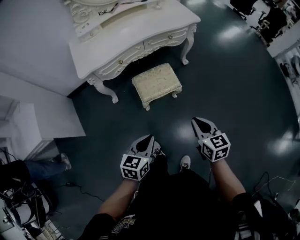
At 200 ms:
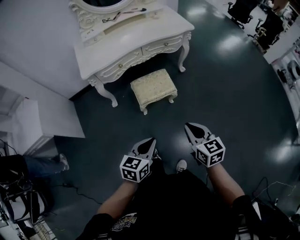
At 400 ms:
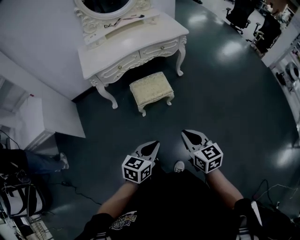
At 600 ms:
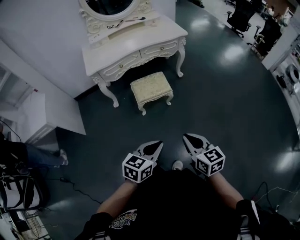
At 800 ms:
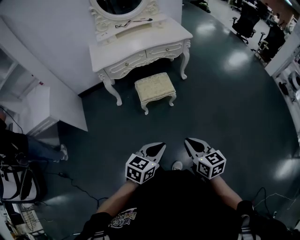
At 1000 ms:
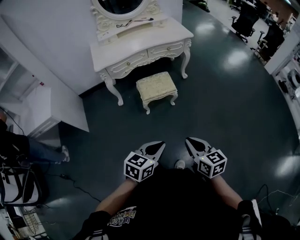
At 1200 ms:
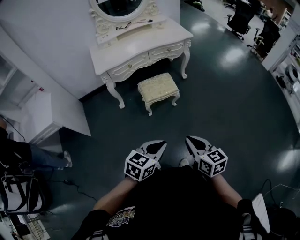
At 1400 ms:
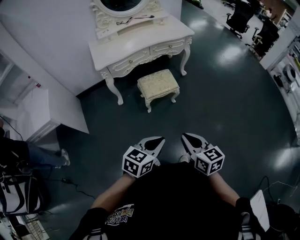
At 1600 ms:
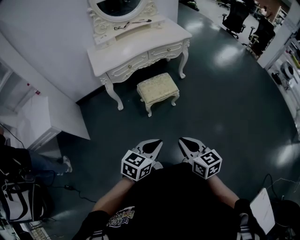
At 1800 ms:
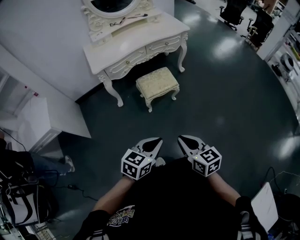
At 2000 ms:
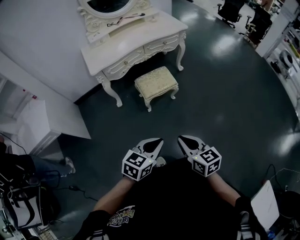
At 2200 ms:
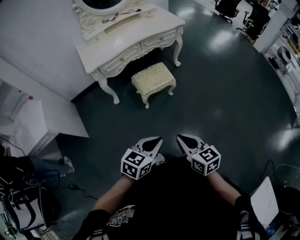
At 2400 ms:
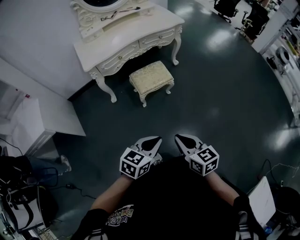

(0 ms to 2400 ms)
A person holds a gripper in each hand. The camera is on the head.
0 ms - 1200 ms: The right gripper travels backward by approximately 25 cm, while the left gripper travels backward, upward and to the right by approximately 25 cm.
1200 ms - 2400 ms: Both grippers travel together to the left, roughly 10 cm.

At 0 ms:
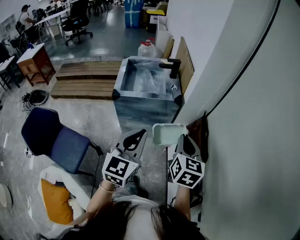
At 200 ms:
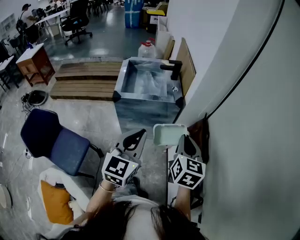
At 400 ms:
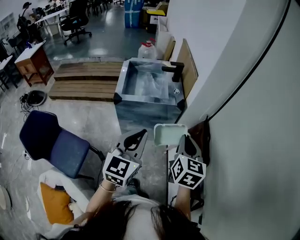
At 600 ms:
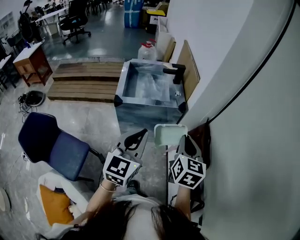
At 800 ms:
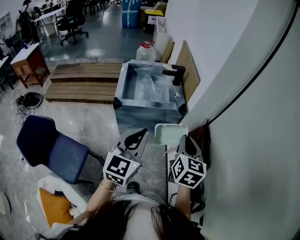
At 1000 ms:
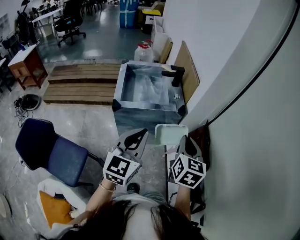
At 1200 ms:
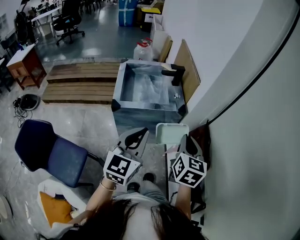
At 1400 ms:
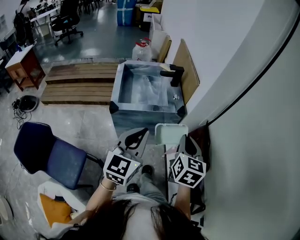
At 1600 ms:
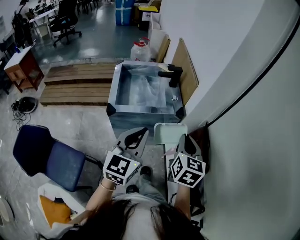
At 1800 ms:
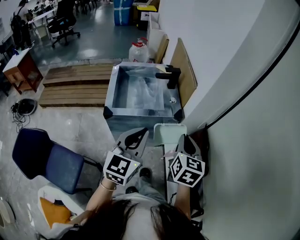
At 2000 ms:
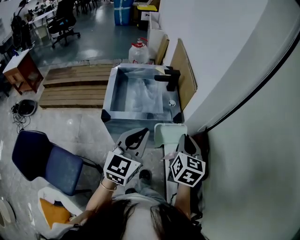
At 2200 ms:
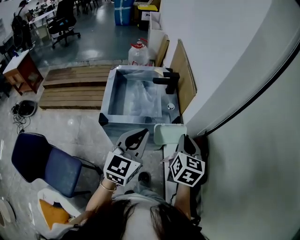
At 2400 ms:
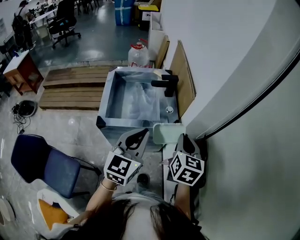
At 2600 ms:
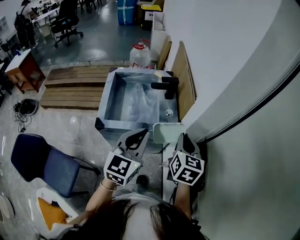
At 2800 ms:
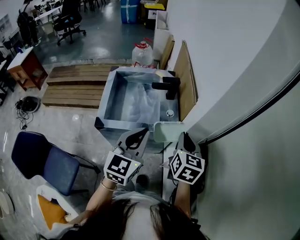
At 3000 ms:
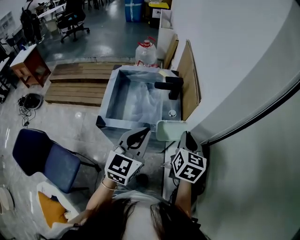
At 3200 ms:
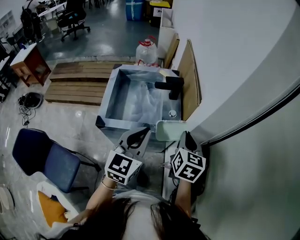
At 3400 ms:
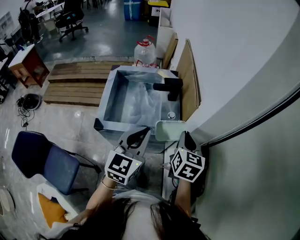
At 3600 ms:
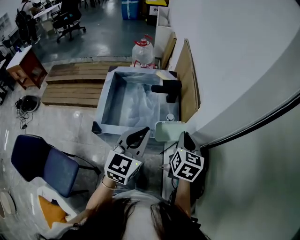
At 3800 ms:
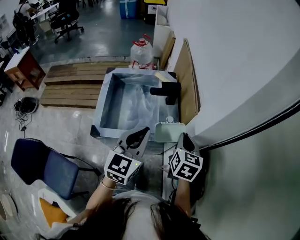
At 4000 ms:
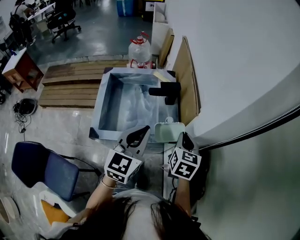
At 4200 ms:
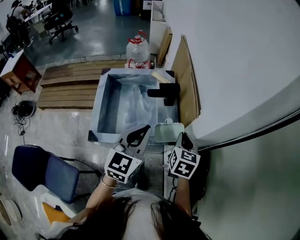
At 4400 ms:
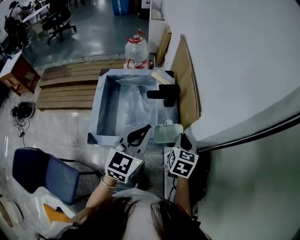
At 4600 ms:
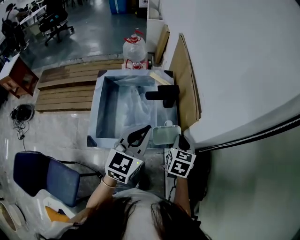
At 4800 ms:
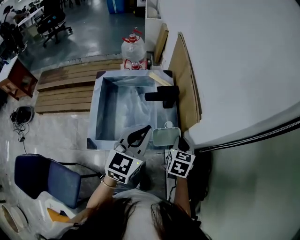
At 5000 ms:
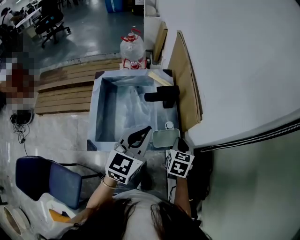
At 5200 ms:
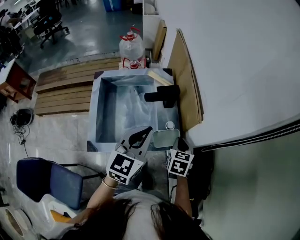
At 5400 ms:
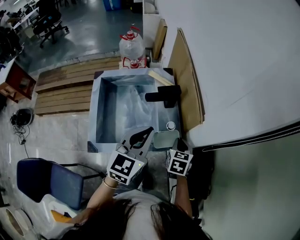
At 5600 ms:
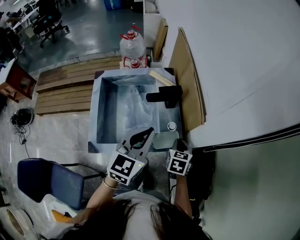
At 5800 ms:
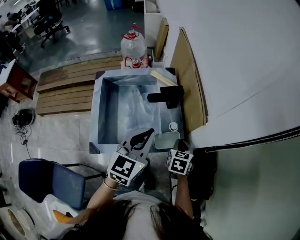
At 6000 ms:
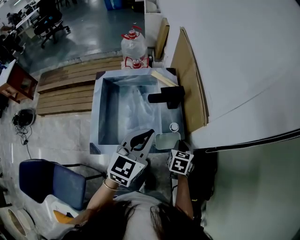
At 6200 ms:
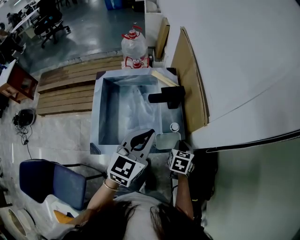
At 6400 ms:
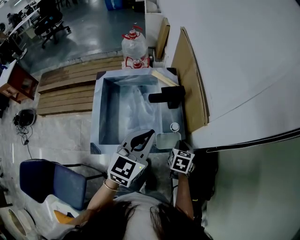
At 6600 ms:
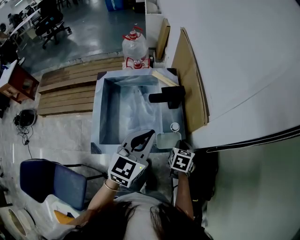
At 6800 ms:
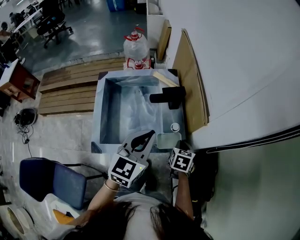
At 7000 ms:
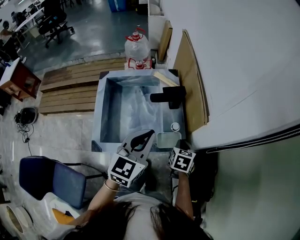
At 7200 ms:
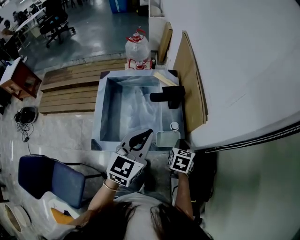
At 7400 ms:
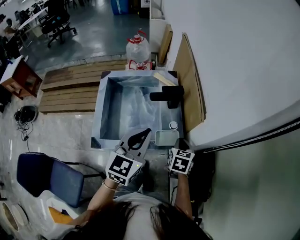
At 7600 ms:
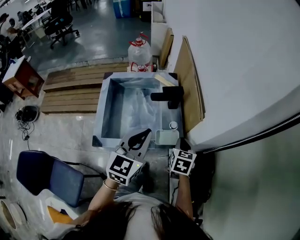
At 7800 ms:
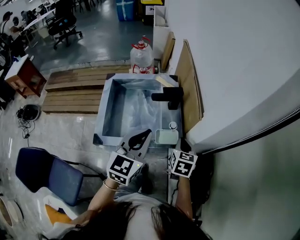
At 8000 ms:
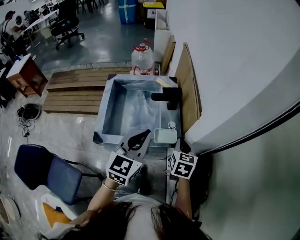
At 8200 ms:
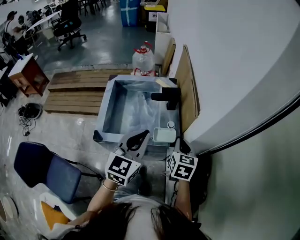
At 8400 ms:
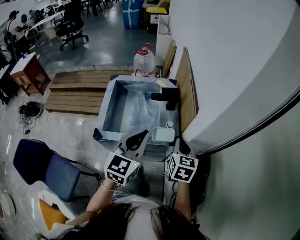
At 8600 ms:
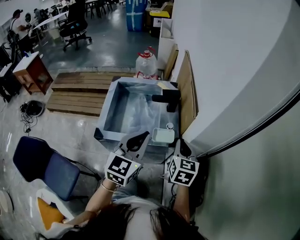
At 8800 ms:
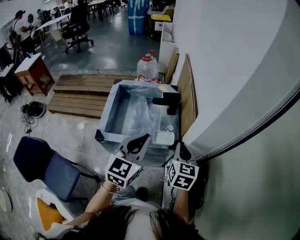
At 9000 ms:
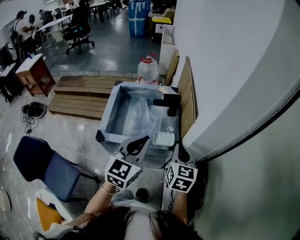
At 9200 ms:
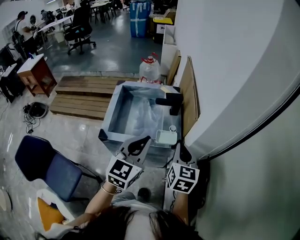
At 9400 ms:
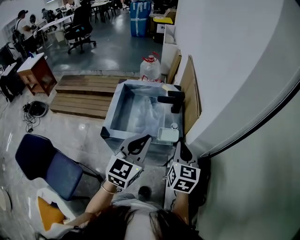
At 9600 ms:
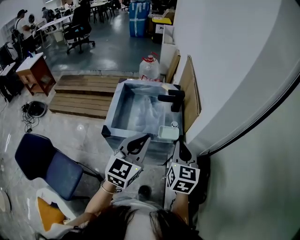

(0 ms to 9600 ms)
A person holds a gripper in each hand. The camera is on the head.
0 ms - 1600 ms: The two grippers go about 15 cm forward and to the left.
1600 ms - 3200 ms: The grippers both shift forward by some 20 cm.
3200 ms - 4800 ms: The left gripper goes about 15 cm forward, while the right gripper shifts roughly 15 cm downward and forward.
4800 ms - 6400 ms: The right gripper moves downward, about 10 cm.
6400 ms - 8000 ms: The right gripper heads upward, covering approximately 10 cm, while the left gripper heads backward, covering roughly 10 cm.
8000 ms - 9600 ms: The right gripper heads upward and backward, covering approximately 15 cm. The left gripper travels backward by roughly 10 cm.

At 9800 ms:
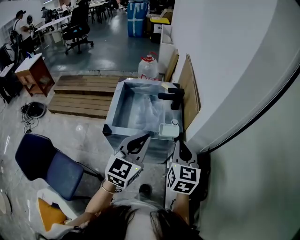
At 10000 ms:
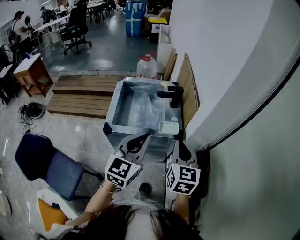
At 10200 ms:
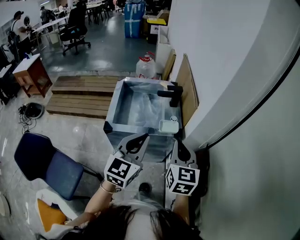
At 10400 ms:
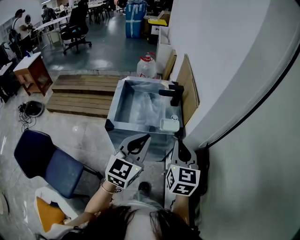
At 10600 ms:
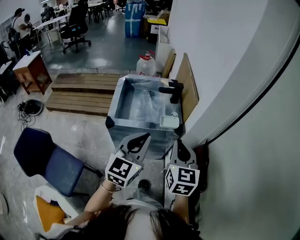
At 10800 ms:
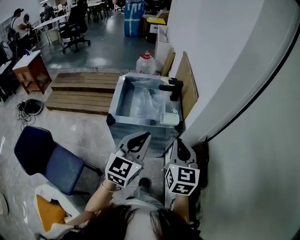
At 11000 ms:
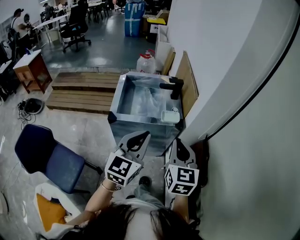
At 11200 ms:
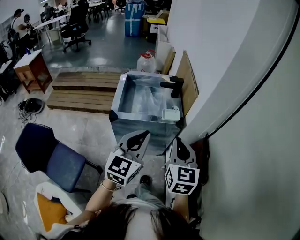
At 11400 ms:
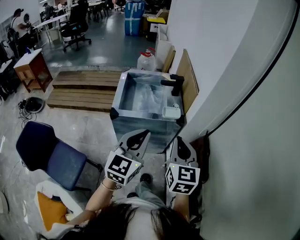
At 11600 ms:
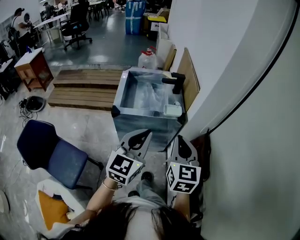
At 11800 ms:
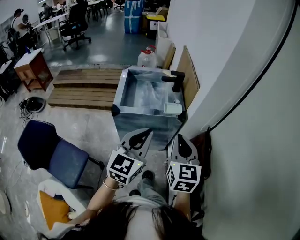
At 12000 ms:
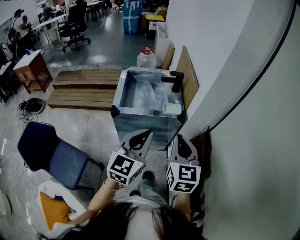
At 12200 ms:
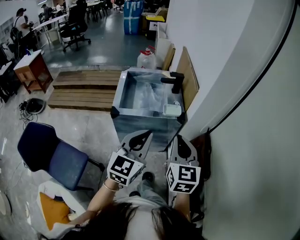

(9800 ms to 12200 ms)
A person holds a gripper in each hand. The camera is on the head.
9800 ms - 11000 ms: Both grippers travel together backward, approximately 10 cm.
11000 ms - 12200 ms: There are only small adjustments of the grippers.

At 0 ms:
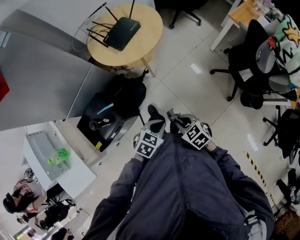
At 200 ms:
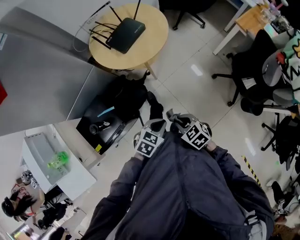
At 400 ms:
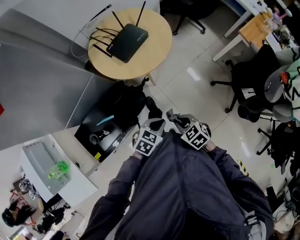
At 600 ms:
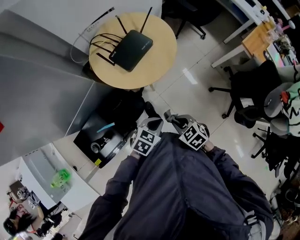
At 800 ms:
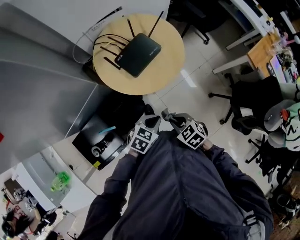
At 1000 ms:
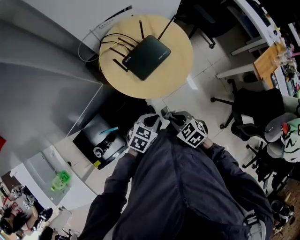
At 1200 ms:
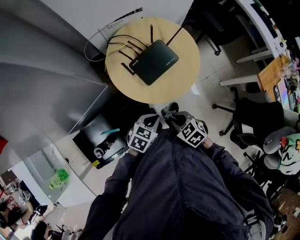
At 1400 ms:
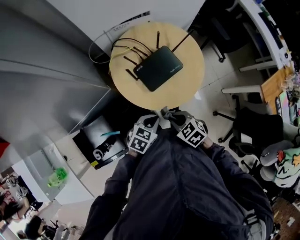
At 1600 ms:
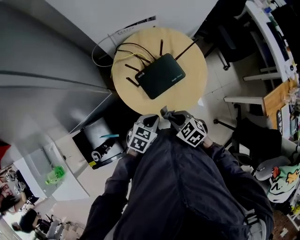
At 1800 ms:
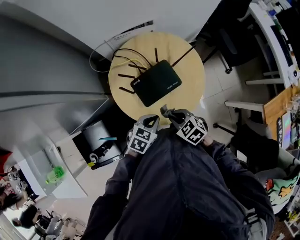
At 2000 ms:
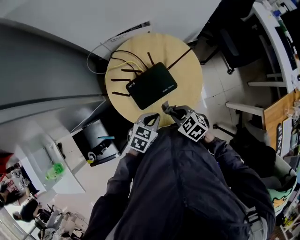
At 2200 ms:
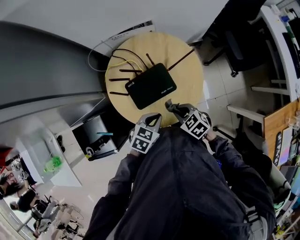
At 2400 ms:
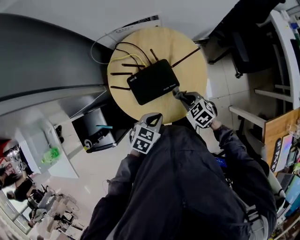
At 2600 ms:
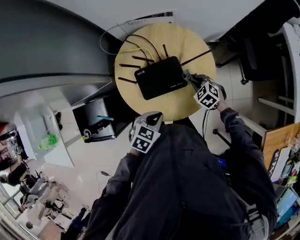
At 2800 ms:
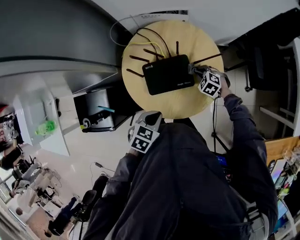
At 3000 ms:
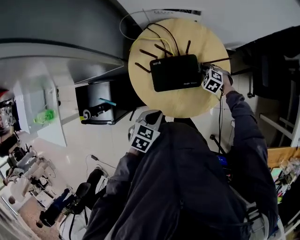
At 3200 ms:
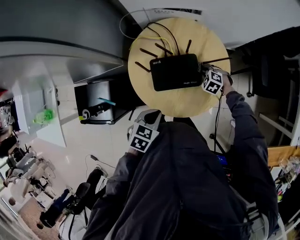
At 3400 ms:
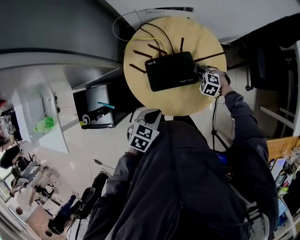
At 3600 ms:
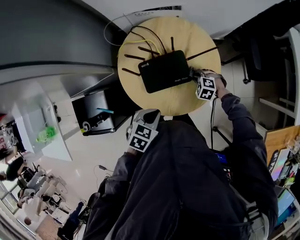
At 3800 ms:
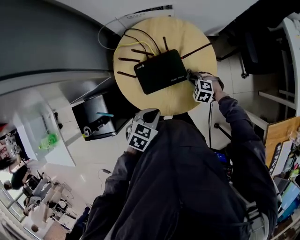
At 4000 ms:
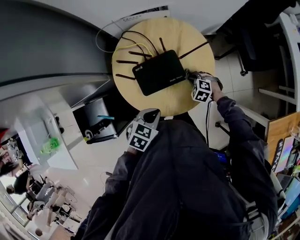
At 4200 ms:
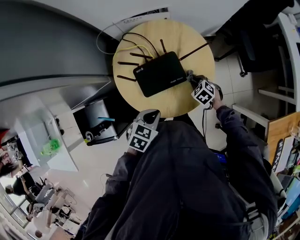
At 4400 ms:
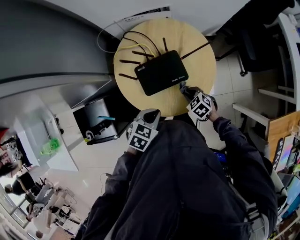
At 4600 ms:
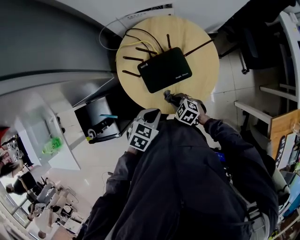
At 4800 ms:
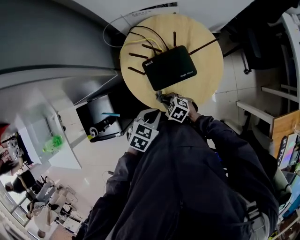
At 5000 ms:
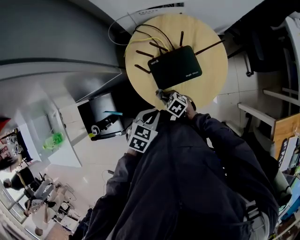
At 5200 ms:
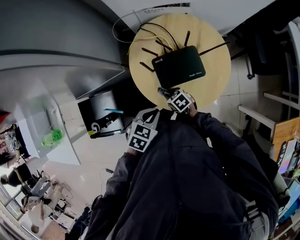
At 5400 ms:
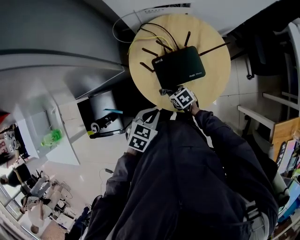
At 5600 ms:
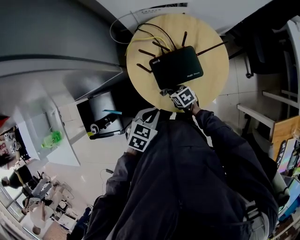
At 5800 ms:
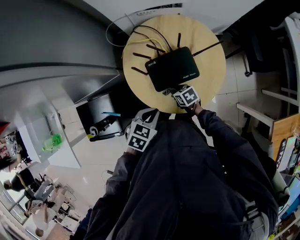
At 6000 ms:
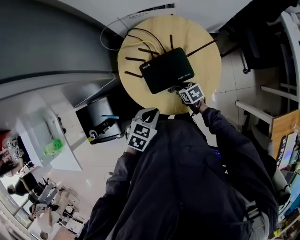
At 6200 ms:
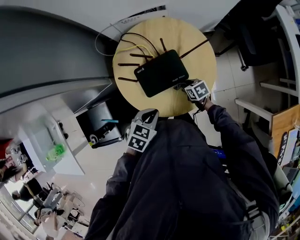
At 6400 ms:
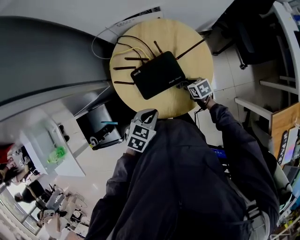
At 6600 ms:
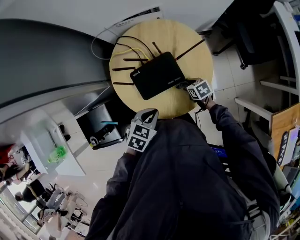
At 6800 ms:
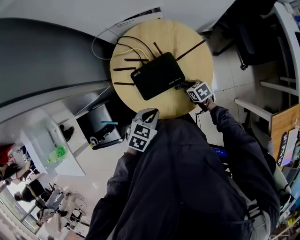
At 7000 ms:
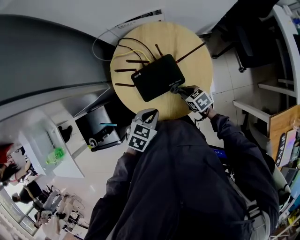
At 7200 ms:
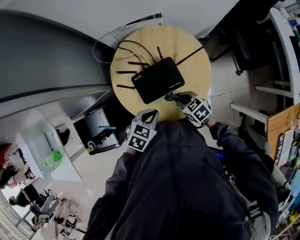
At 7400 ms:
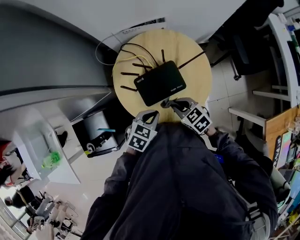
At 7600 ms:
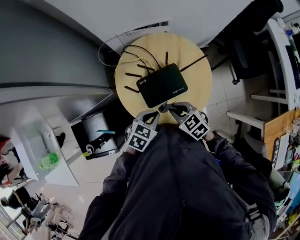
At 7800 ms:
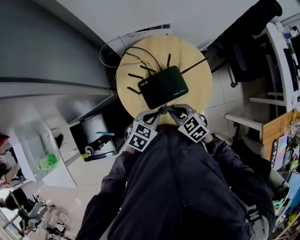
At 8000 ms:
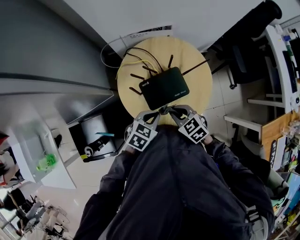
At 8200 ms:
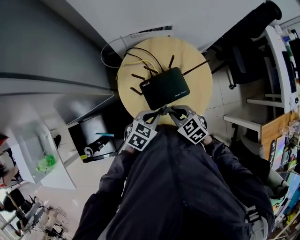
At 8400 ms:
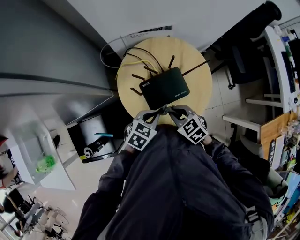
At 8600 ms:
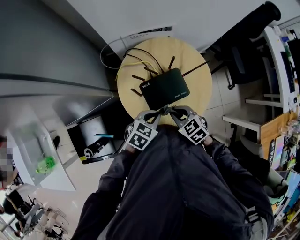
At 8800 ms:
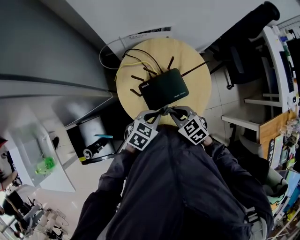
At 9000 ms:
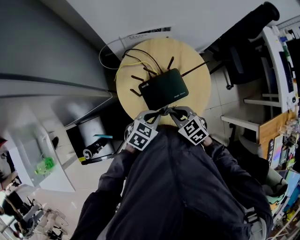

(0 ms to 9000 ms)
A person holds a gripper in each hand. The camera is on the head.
0 ms - 1600 ms: The pair of grippers is taken forward, approximately 40 cm. The right gripper turns by about 20 degrees, while the left gripper swivels approximately 20 degrees.
1600 ms - 3000 ms: The right gripper moves forward, downward and to the right, approximately 35 cm, and rotates around the line of its fingers by roughly 40 degrees, counterclockwise from behind; the left gripper turns by about 30 degrees.
3000 ms - 4400 ms: The right gripper goes roughly 15 cm backward, and turns by some 30 degrees.
4400 ms - 6000 ms: The right gripper turns by approximately 30 degrees.
6000 ms - 7600 ms: The right gripper travels upward by roughly 15 cm, and swivels roughly 30 degrees.
7600 ms - 9000 ms: The grippers stay close to where they were, moving slightly.
